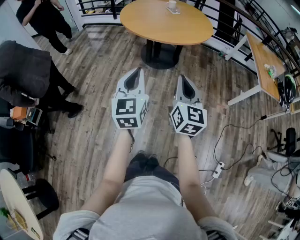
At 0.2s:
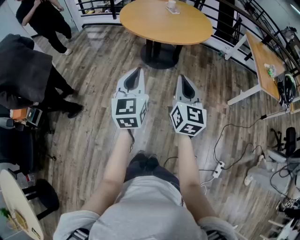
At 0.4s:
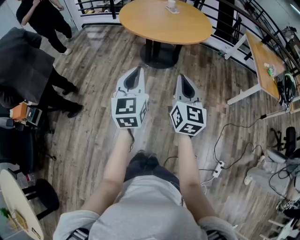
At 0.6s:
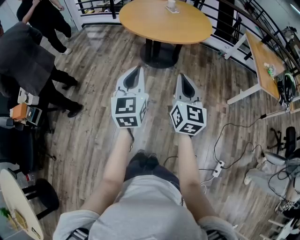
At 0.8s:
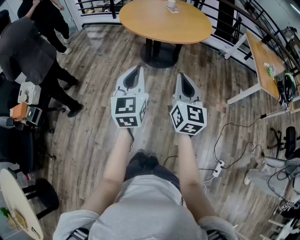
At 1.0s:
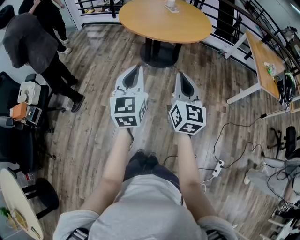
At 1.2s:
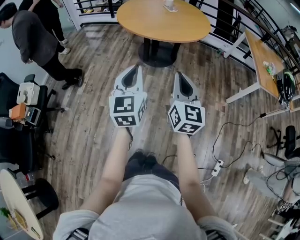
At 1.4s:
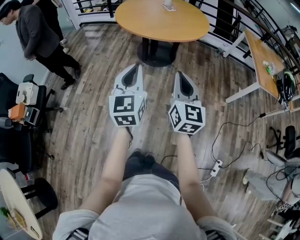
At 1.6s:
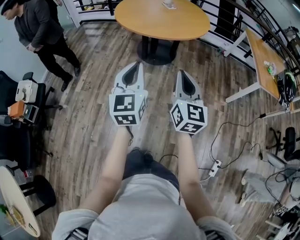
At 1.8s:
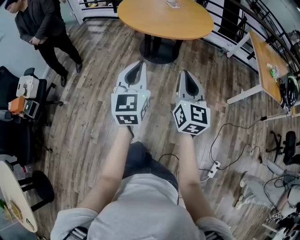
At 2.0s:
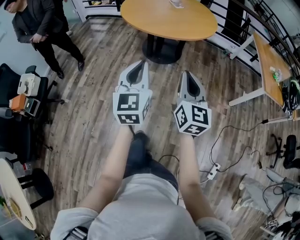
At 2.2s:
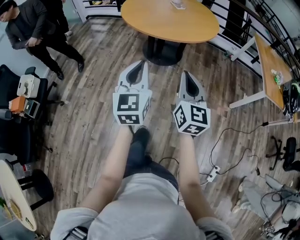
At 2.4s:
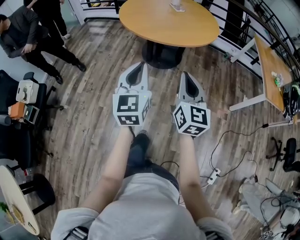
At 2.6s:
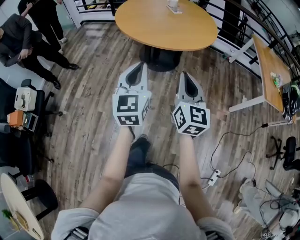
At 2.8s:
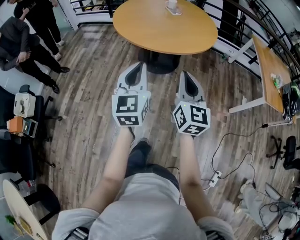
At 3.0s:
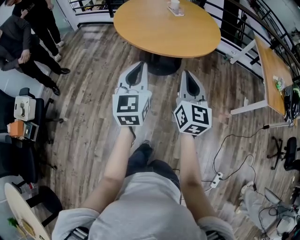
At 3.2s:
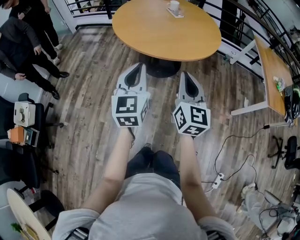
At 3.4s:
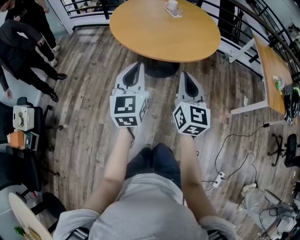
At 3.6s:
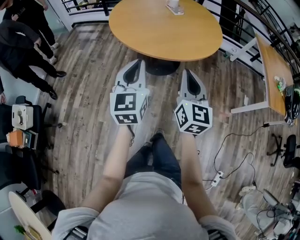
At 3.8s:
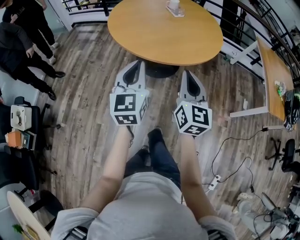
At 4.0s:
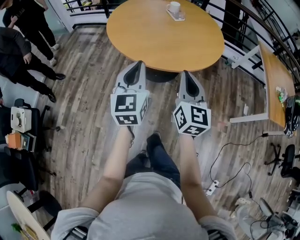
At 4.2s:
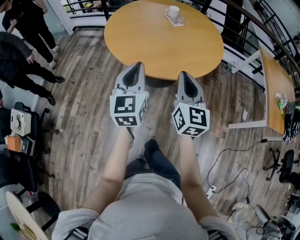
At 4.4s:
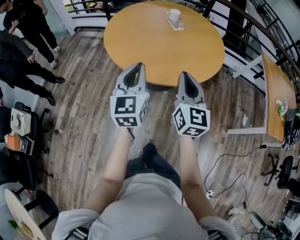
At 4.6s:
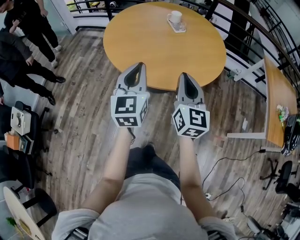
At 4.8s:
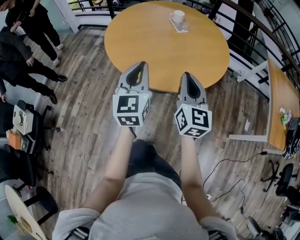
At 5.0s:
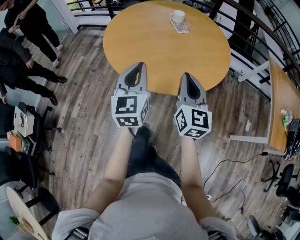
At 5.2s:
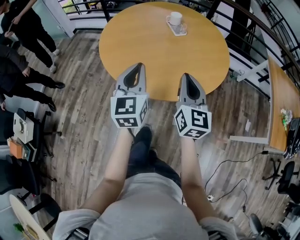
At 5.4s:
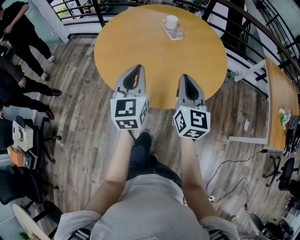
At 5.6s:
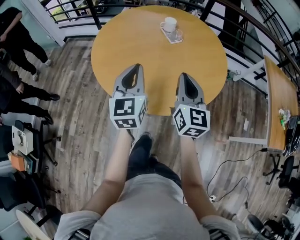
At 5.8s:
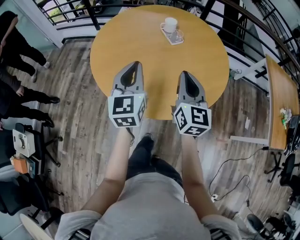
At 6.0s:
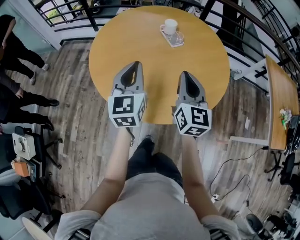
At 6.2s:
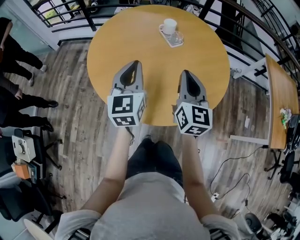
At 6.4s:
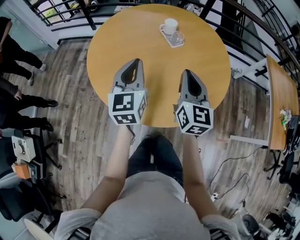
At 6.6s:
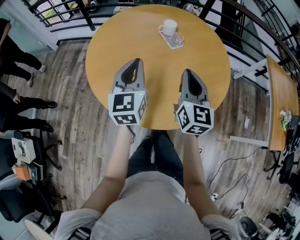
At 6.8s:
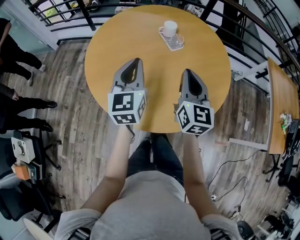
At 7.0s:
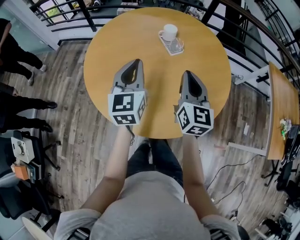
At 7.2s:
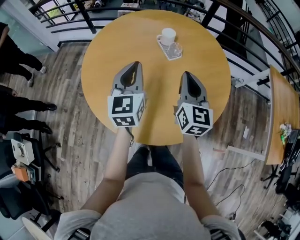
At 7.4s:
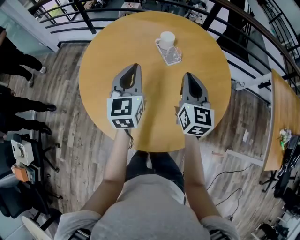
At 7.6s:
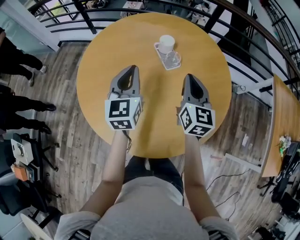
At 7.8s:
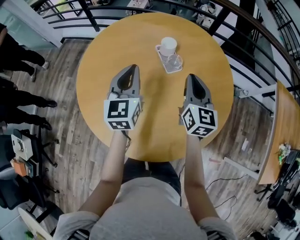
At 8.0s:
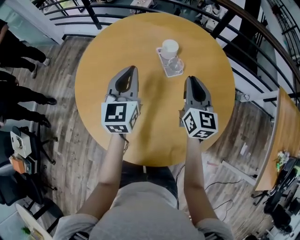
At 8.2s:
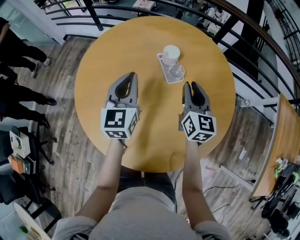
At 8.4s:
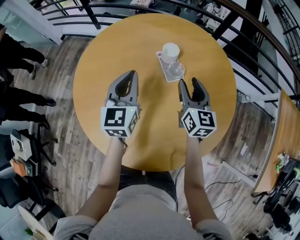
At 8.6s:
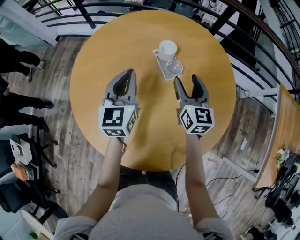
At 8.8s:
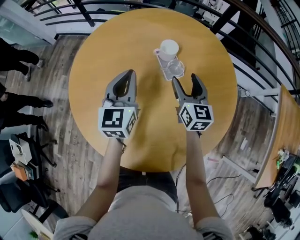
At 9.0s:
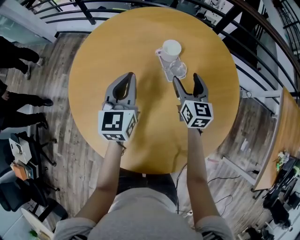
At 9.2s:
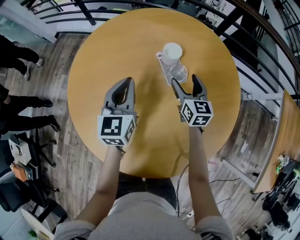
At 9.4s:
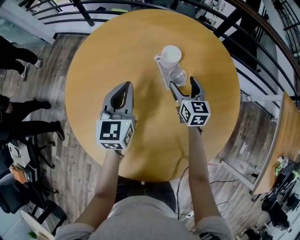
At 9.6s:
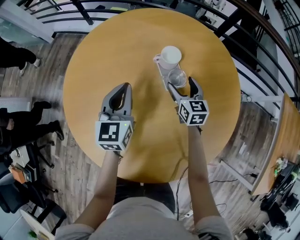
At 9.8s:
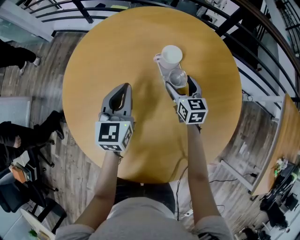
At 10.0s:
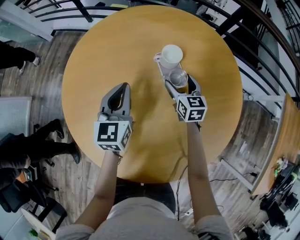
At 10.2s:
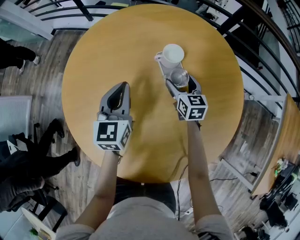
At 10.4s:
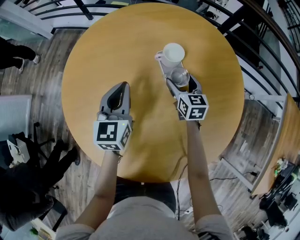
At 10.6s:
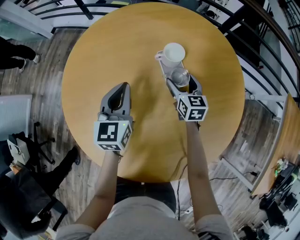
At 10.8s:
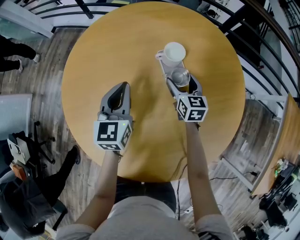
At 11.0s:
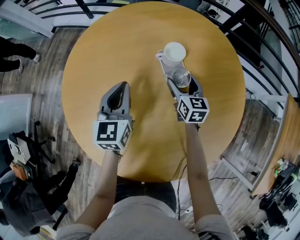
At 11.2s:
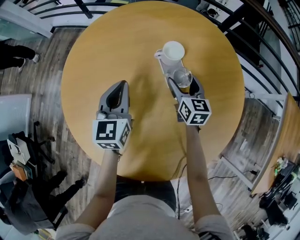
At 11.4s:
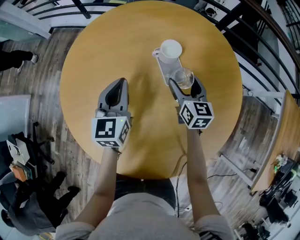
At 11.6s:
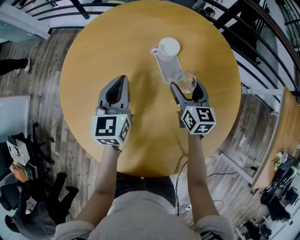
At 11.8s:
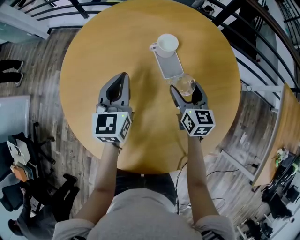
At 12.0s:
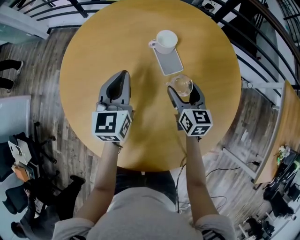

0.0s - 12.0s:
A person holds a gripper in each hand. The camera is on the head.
0.0s - 1.6s: Both grippers move to the right, roughly 5 cm.
1.6s - 3.0s: The two grippers go roughly 20 cm forward.
3.0s - 4.4s: The two grippers go some 25 cm forward.
4.4s - 6.0s: The two grippers go some 25 cm forward.
6.0s - 7.6s: Both grippers travel together forward, some 20 cm.
7.6s - 9.0s: The right gripper heads forward and downward, covering roughly 20 cm, and opens. Meanwhile the left gripper is displaced forward and downward by some 10 cm.
9.0s - 10.4s: The left gripper travels downward by approximately 5 cm, while the right gripper heads downward and forward, covering some 10 cm.
10.4s - 12.0s: The right gripper goes some 10 cm backward.

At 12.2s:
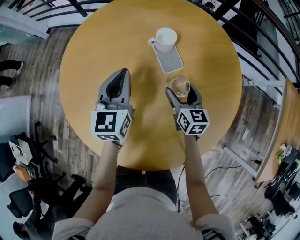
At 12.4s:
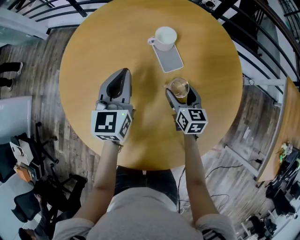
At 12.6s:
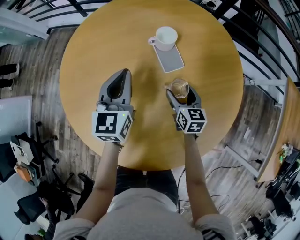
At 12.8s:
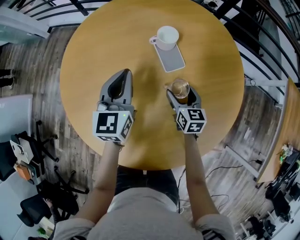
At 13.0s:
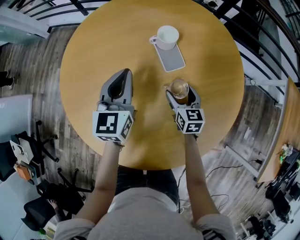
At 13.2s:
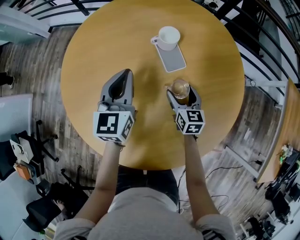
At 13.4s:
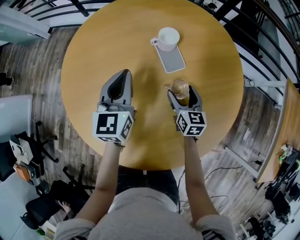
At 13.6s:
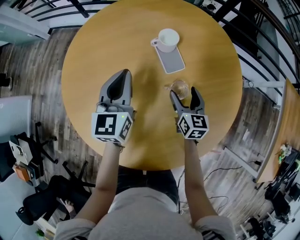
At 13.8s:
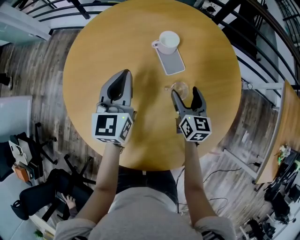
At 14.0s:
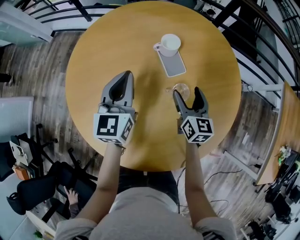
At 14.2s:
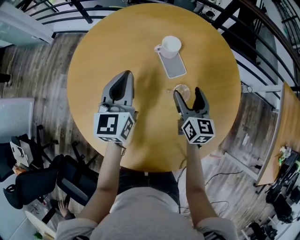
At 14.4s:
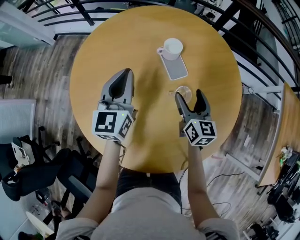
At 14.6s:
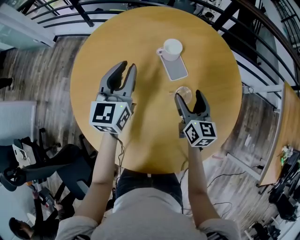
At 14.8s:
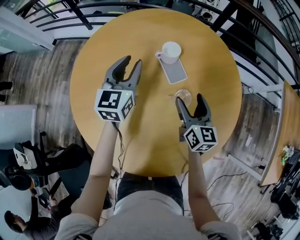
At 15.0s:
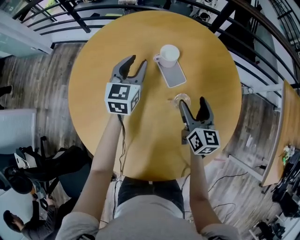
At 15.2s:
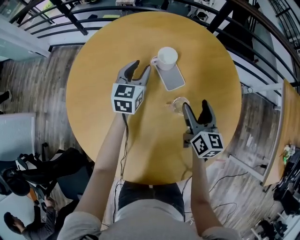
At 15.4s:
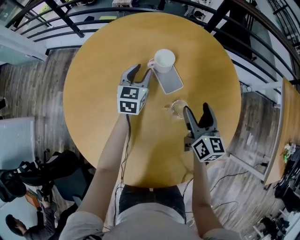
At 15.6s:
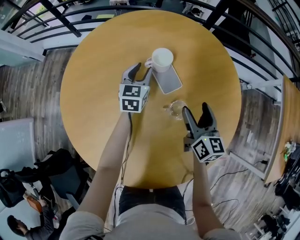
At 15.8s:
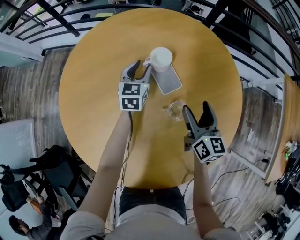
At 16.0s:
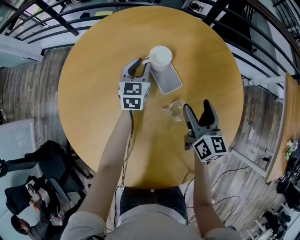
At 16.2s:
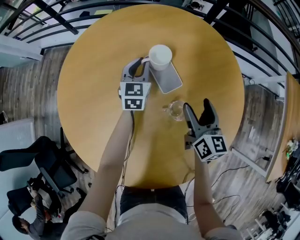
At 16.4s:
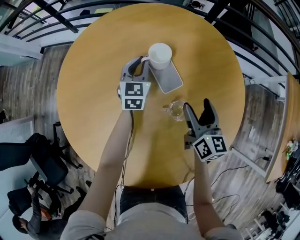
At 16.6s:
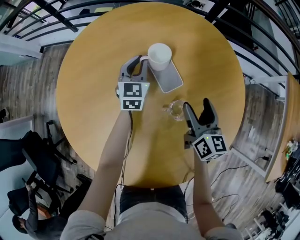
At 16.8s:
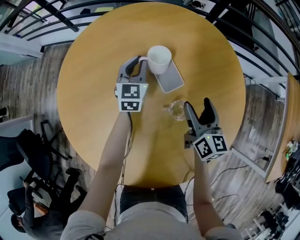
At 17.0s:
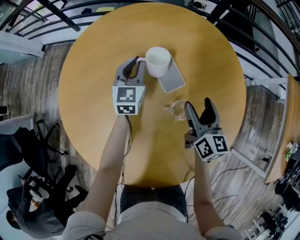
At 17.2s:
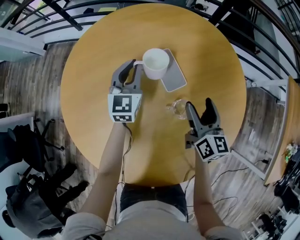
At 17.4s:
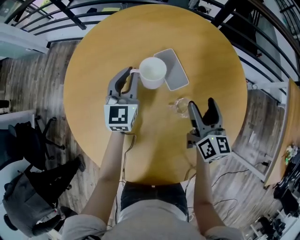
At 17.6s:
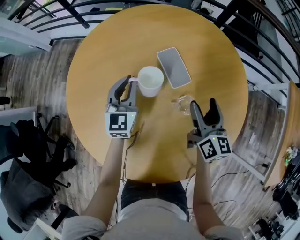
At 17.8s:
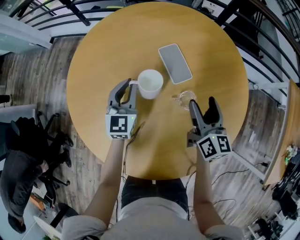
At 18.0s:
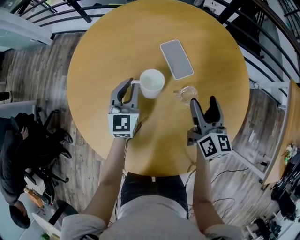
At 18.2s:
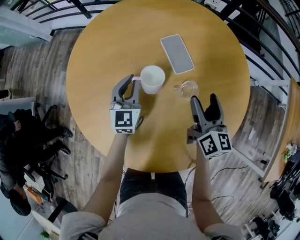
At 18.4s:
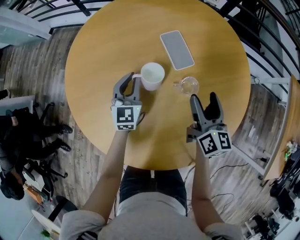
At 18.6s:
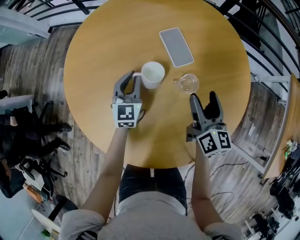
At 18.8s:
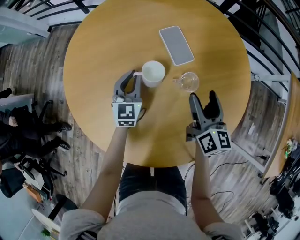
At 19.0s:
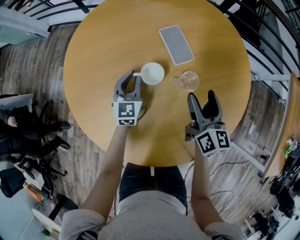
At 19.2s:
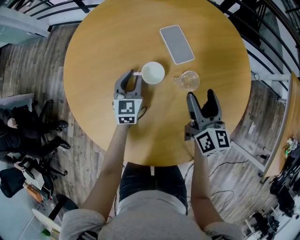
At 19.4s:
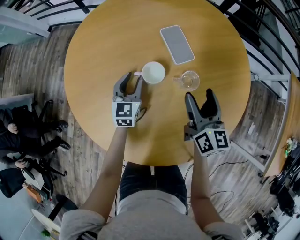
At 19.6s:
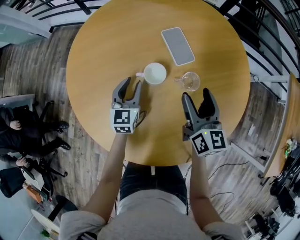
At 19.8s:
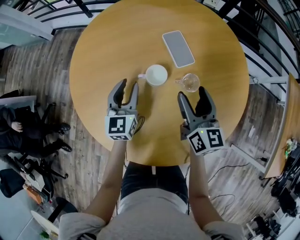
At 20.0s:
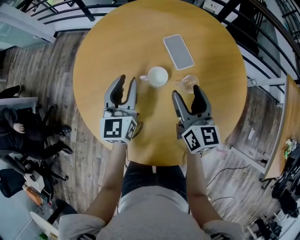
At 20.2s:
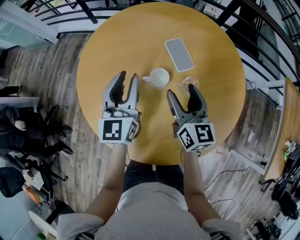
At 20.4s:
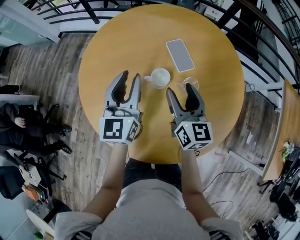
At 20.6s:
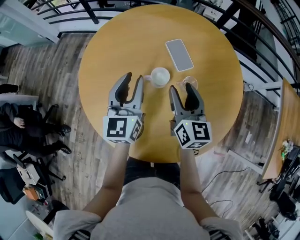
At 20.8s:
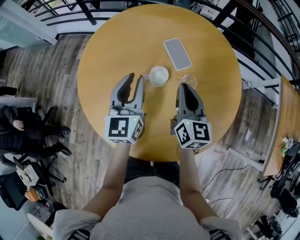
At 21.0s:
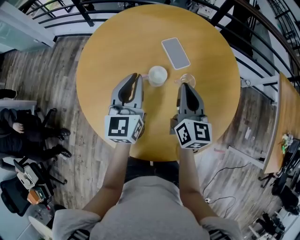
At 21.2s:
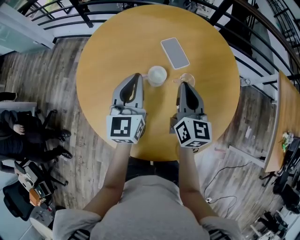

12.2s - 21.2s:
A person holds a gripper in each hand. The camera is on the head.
12.2s - 13.8s: The grippers move only a little.
13.8s - 15.2s: The right gripper changes place by about 5 cm. The left gripper goes approximately 15 cm forward and downward, and opens its fingers.
15.2s - 16.6s: The left gripper shifts some 10 cm downward and forward, and closes its fingers.
16.6s - 18.2s: The left gripper travels backward and to the left by approximately 20 cm. The right gripper is displaced backward by roughly 5 cm.
18.2s - 19.8s: The left gripper moves backward, some 5 cm, moves roughly 5 cm downward and comes back, and opens up, while the right gripper travels to the left by some 5 cm.
19.8s - 21.2s: The left gripper travels upward by some 15 cm, and closes up, while the right gripper heads upward, covering about 5 cm, and closes its fingers.

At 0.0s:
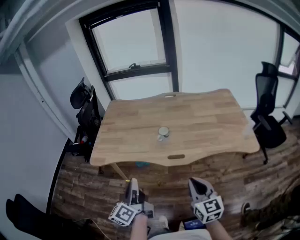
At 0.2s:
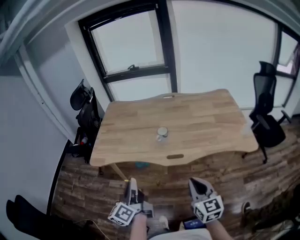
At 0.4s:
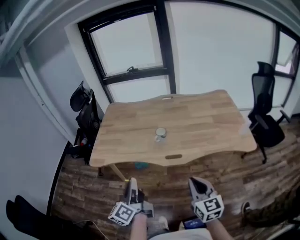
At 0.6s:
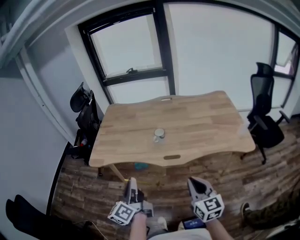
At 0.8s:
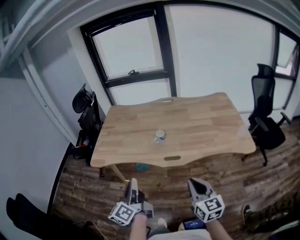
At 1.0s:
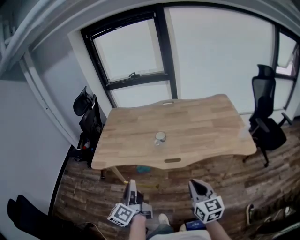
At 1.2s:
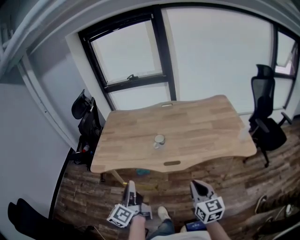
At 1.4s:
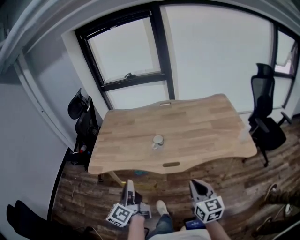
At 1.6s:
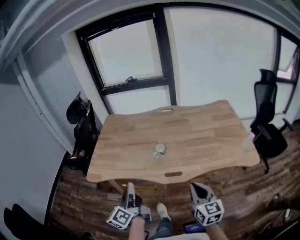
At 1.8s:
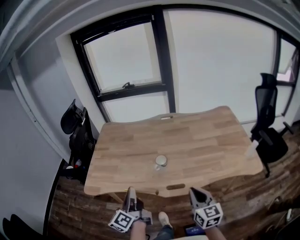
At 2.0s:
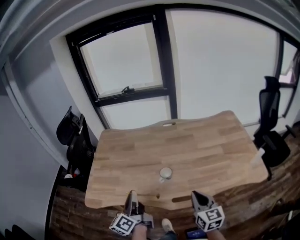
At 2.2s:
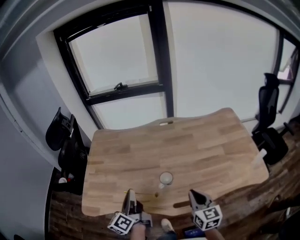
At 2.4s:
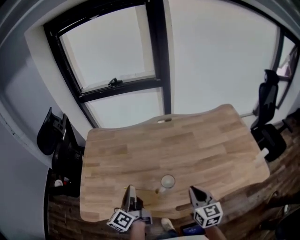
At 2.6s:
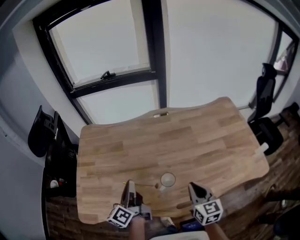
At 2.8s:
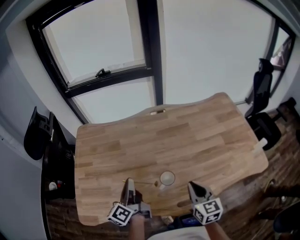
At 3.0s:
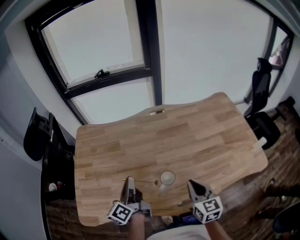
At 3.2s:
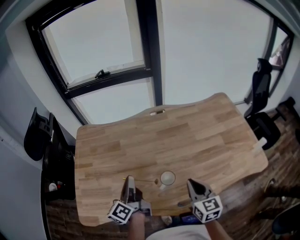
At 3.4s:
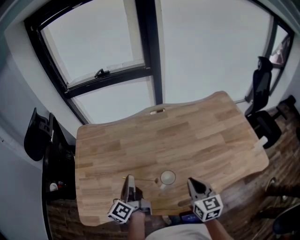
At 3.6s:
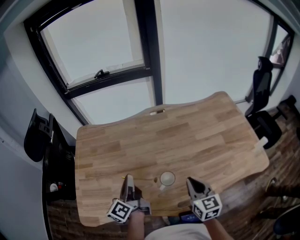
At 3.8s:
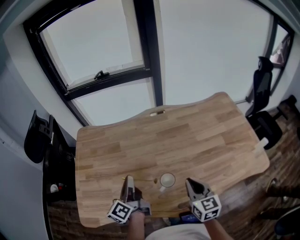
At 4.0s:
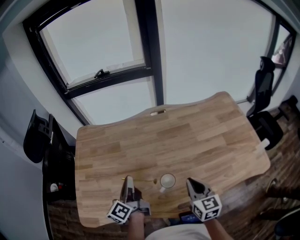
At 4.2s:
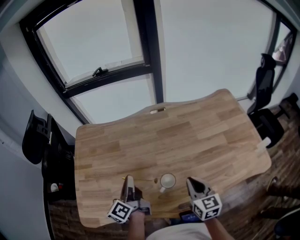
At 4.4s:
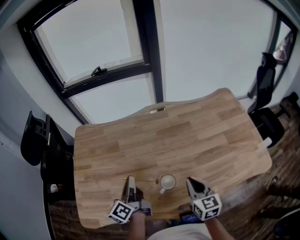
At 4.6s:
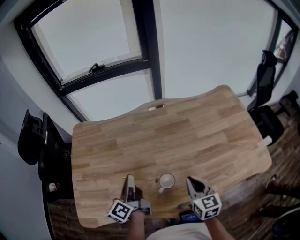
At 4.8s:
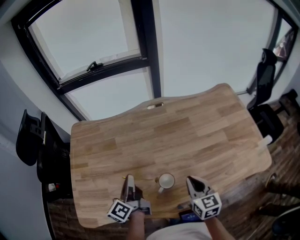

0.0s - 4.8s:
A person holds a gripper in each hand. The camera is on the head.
0.0s - 1.6s: The grippers both shift forward by some 5 cm.
1.6s - 3.2s: Both grippers travel together forward, roughly 30 cm.
3.2s - 4.8s: The left gripper shifts by some 5 cm. The right gripper ends up some 5 cm from where it was.
